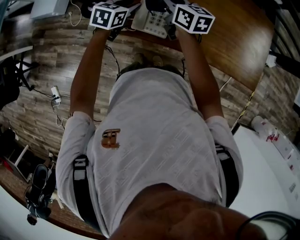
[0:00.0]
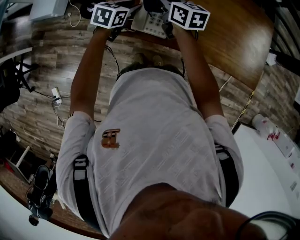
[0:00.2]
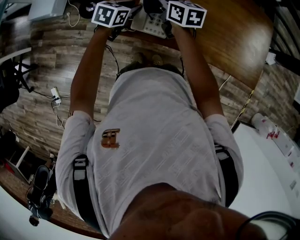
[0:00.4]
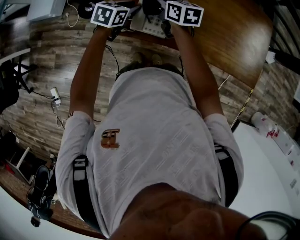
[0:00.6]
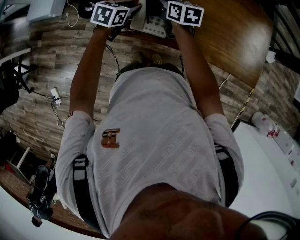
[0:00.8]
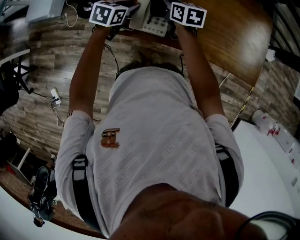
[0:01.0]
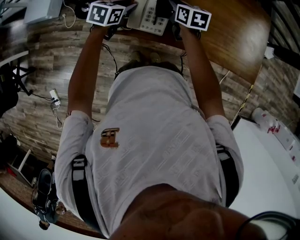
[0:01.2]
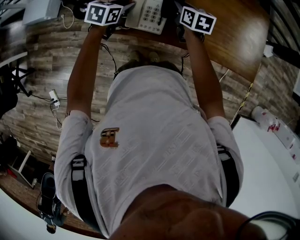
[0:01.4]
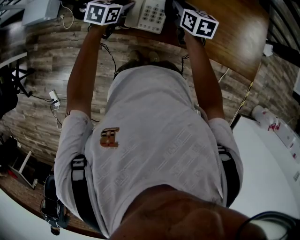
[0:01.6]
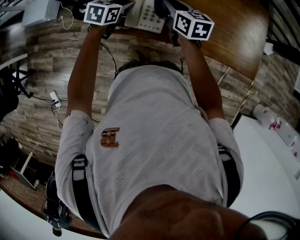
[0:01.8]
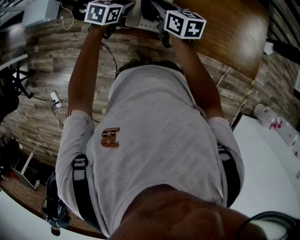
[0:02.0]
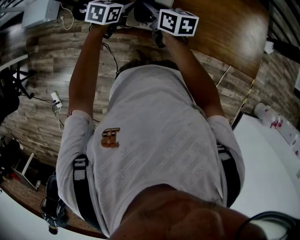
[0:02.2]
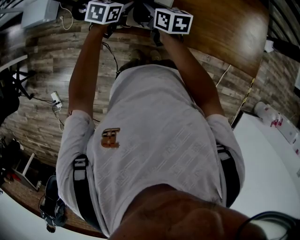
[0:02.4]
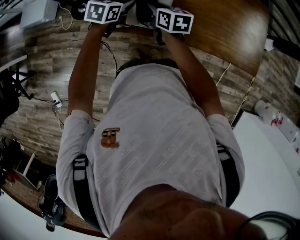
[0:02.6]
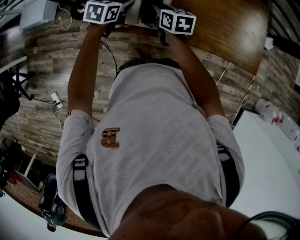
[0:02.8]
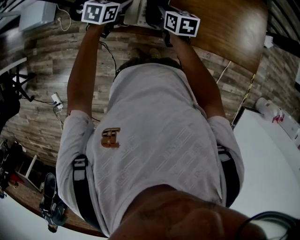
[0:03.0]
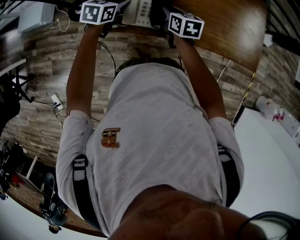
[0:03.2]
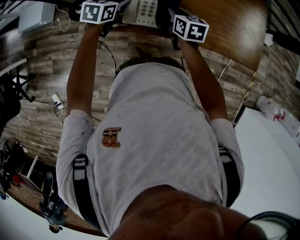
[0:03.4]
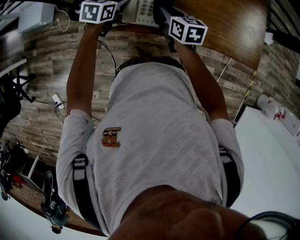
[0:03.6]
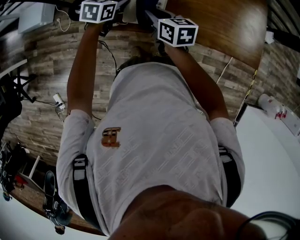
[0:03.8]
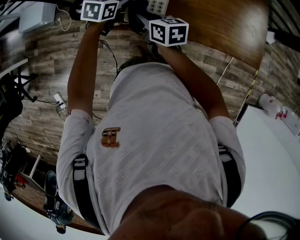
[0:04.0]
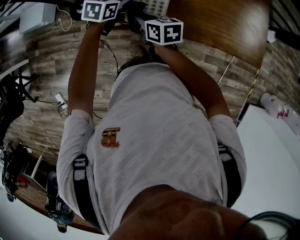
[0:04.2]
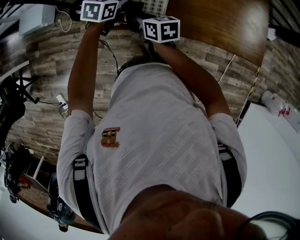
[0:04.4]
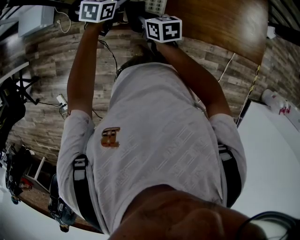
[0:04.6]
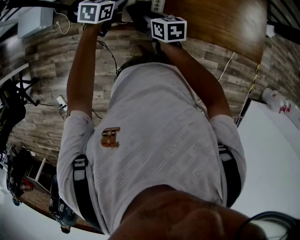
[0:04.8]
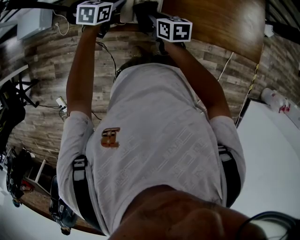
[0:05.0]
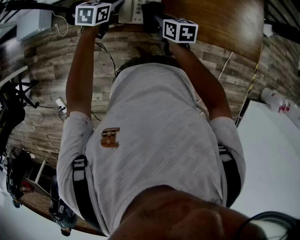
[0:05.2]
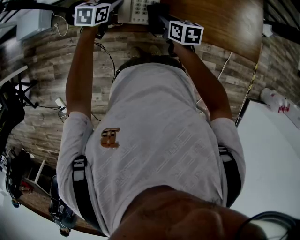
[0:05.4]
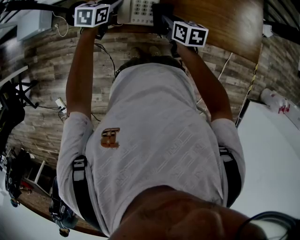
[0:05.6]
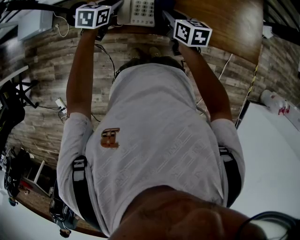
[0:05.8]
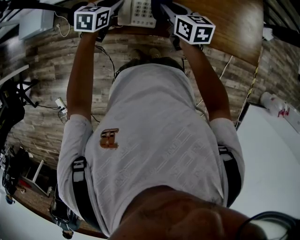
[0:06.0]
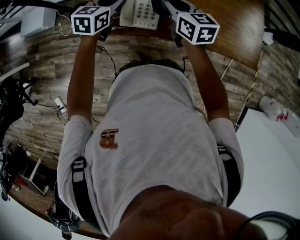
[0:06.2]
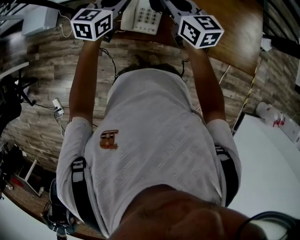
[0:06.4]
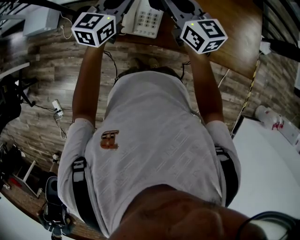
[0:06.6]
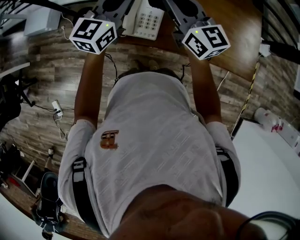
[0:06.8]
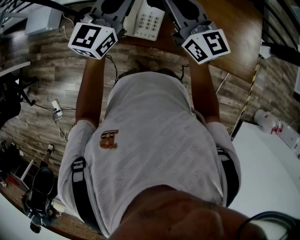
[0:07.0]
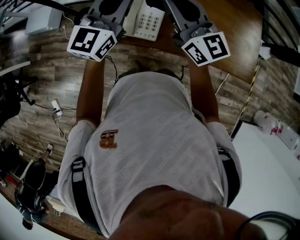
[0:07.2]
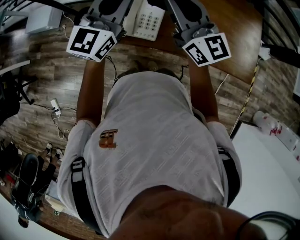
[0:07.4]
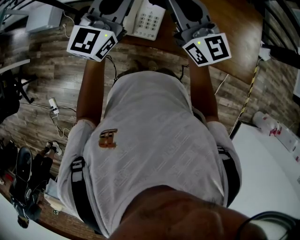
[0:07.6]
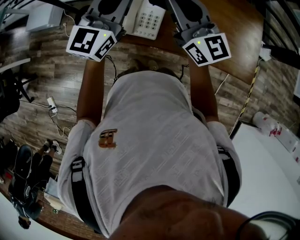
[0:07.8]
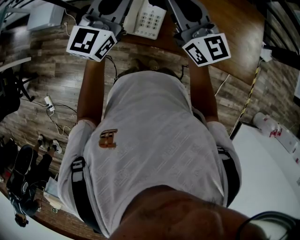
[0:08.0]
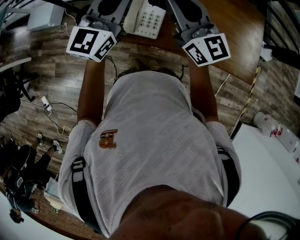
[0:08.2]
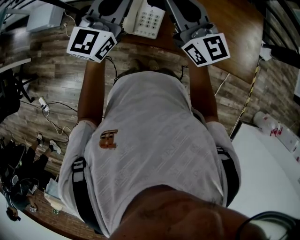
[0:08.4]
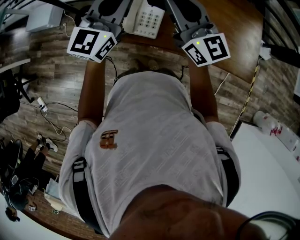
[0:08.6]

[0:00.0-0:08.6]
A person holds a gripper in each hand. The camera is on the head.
0:00.0 to 0:01.4: The right gripper is displaced to the right and downward by about 15 cm, and changes its angle by roughly 20 degrees.
0:01.4 to 0:02.8: The right gripper shifts roughly 10 cm to the left and backward.
0:02.8 to 0:04.4: The right gripper travels backward and to the left by approximately 10 cm.
0:04.4 to 0:05.8: The right gripper goes approximately 15 cm to the right.
0:05.8 to 0:07.2: The two grippers go roughly 25 cm upward. The right gripper tips its fingers upward by approximately 40 degrees; the left gripper tips its fingers upward by some 50 degrees, and closes up.
0:07.2 to 0:08.6: The two grippers keep their place.

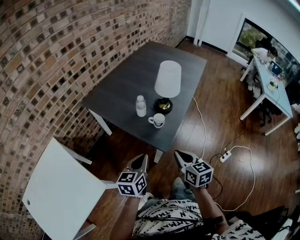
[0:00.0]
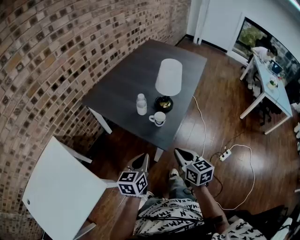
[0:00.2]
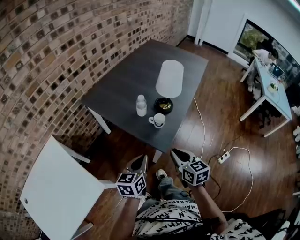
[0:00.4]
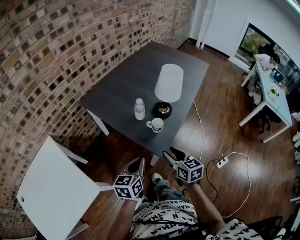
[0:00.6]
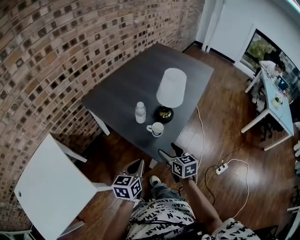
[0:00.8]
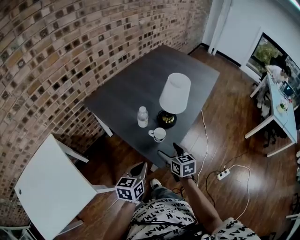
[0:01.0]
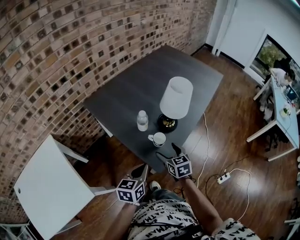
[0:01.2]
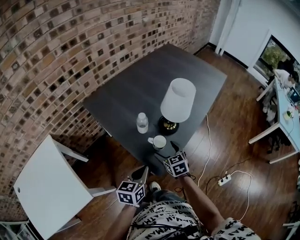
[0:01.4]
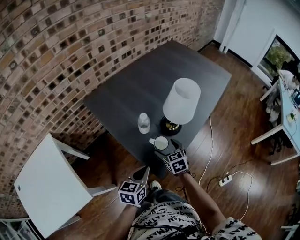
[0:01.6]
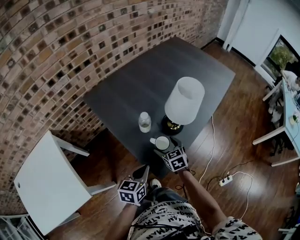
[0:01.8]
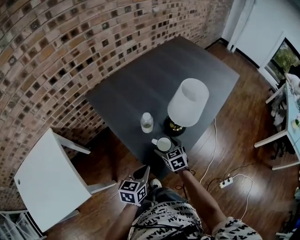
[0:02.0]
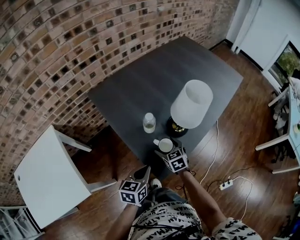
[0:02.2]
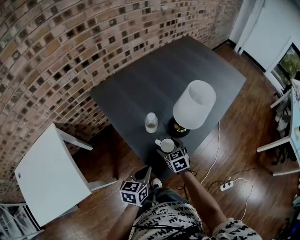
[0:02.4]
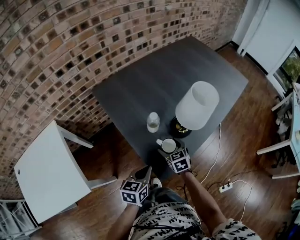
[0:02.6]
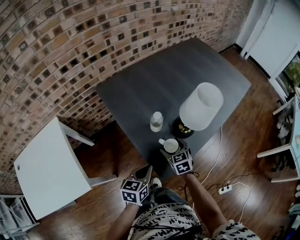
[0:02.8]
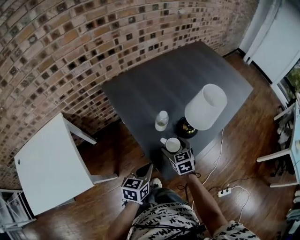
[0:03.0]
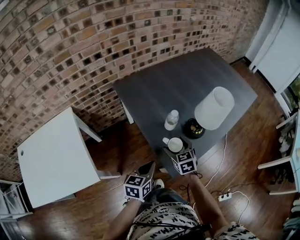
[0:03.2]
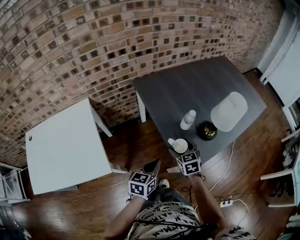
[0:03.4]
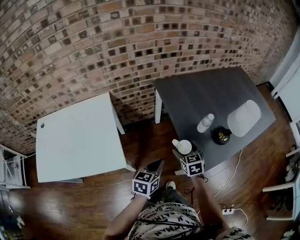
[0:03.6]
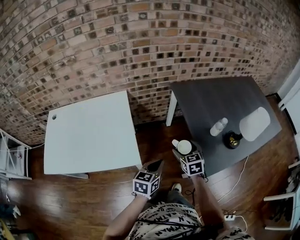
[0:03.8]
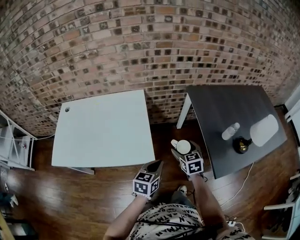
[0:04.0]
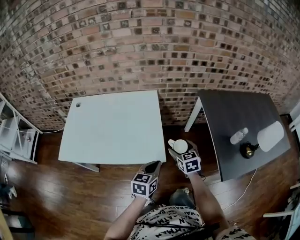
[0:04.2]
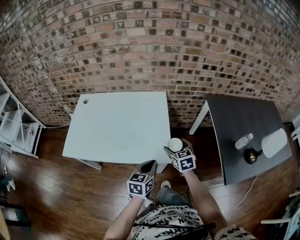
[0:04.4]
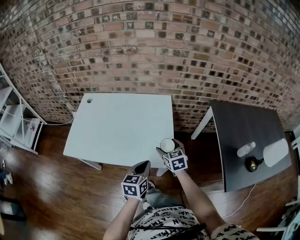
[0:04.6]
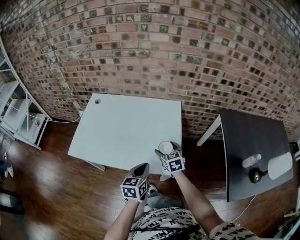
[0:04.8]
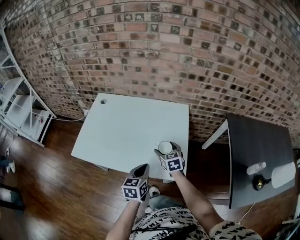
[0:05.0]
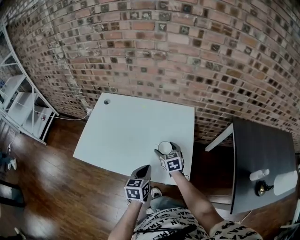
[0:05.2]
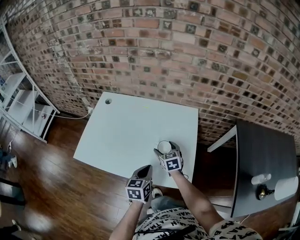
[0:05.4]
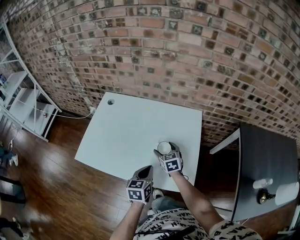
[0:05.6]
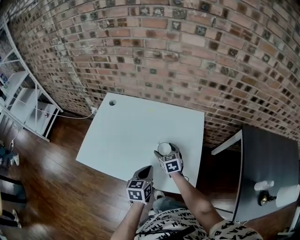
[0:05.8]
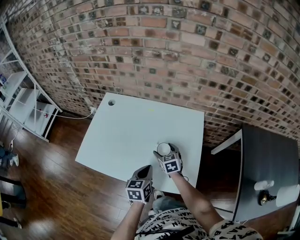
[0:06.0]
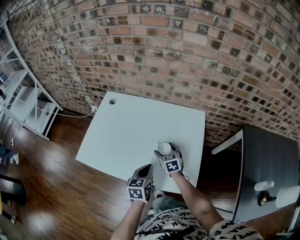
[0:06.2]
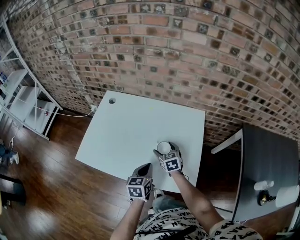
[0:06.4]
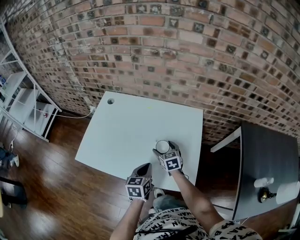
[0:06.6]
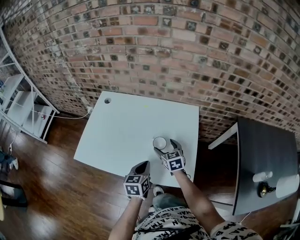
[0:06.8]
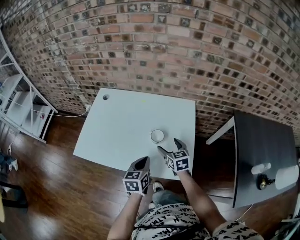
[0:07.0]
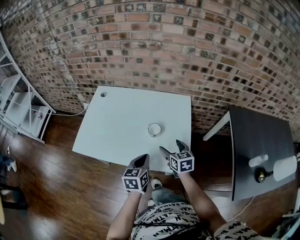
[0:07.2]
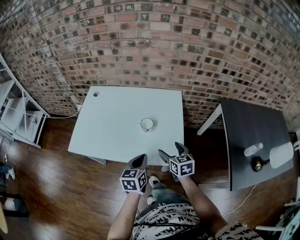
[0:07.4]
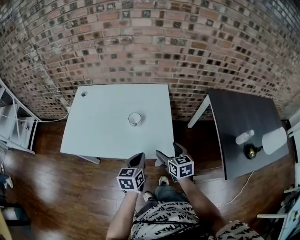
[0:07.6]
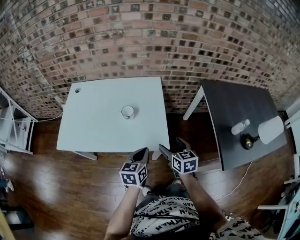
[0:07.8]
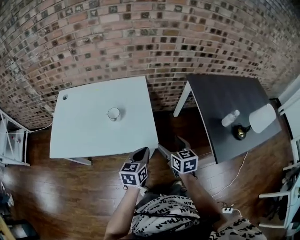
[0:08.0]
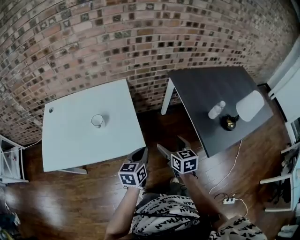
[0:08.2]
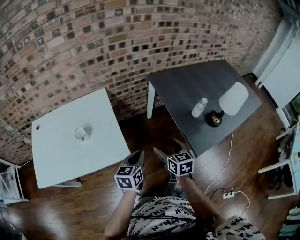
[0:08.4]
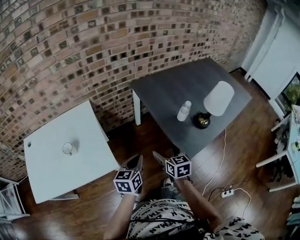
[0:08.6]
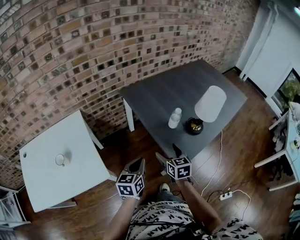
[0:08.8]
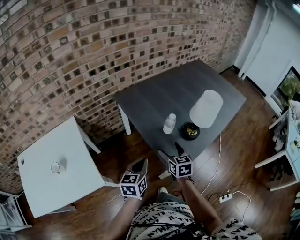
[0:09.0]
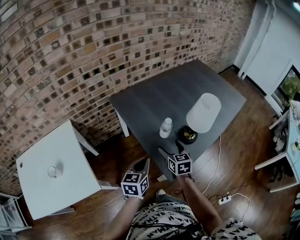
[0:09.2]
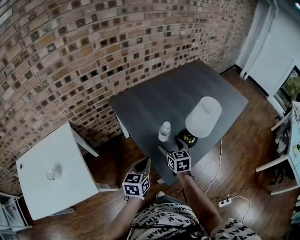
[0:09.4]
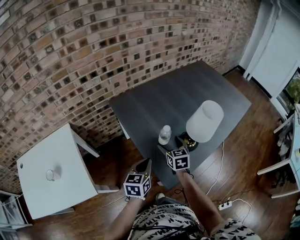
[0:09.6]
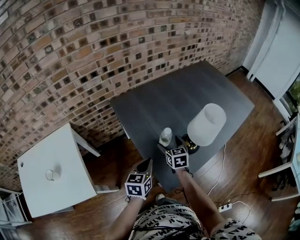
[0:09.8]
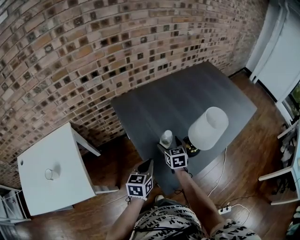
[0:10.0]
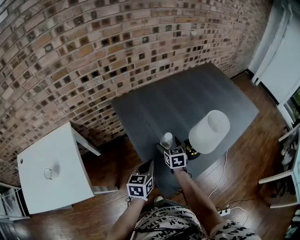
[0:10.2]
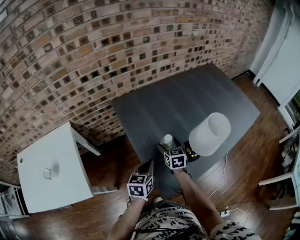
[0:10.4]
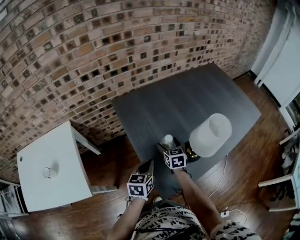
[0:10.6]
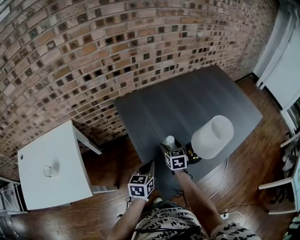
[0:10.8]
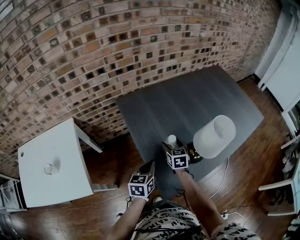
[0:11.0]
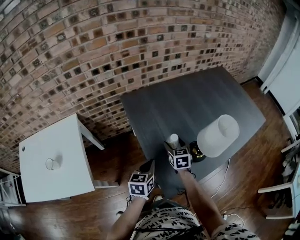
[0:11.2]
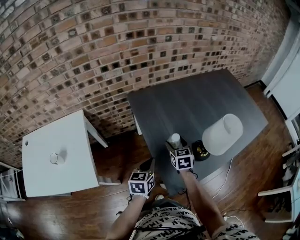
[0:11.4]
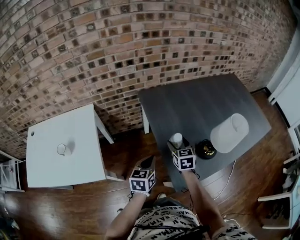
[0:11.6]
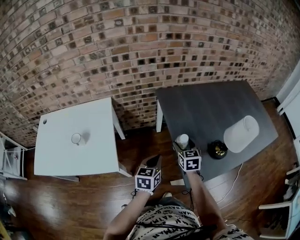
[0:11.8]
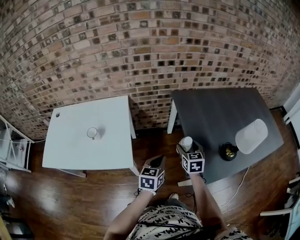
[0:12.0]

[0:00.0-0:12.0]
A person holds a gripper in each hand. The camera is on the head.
0:00.0 to 0:01.6: The right gripper is displaced forward and downward by roughly 30 cm, turns by about 30 degrees, and opens up, while the left gripper heads forward and downward, covering roughly 15 cm.
0:01.6 to 0:03.0: The grippers move only a little.
0:03.0 to 0:04.4: The two grippers travel together, some 50 cm. The right gripper changes its angle by roughly 30 degrees, while the left gripper swivels roughly 40 degrees.
0:04.4 to 0:06.0: The right gripper goes approximately 30 cm to the left, forward and downward; the left gripper is displaced to the left and forward by some 25 cm, and swivels roughly 20 degrees.
0:06.0 to 0:07.6: The left gripper travels backward and to the right by roughly 15 cm. The right gripper travels backward, to the right and upward by about 30 cm.
0:07.6 to 0:09.0: The two grippers travel together, about 50 cm. The right gripper rotates approximately 40 degrees; the left gripper swivels about 40 degrees.
0:09.0 to 0:10.4: The left gripper goes about 15 cm forward and to the right. The right gripper travels forward by about 20 cm.
0:10.4 to 0:12.0: The grippers both shift to the left and backward by about 25 cm.

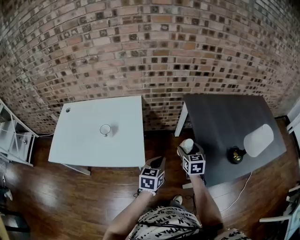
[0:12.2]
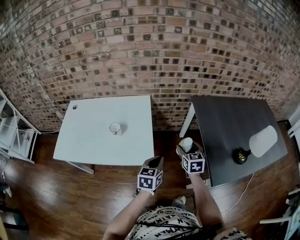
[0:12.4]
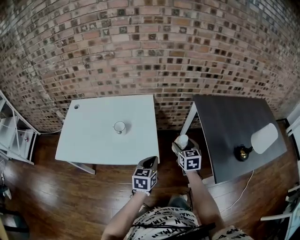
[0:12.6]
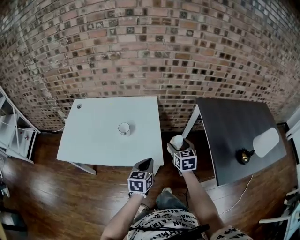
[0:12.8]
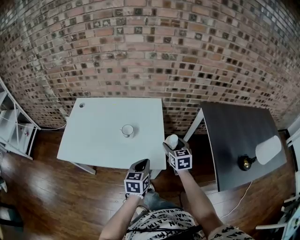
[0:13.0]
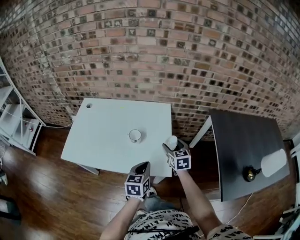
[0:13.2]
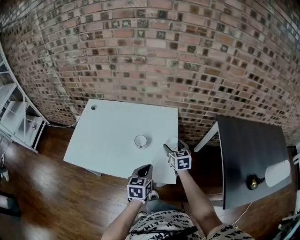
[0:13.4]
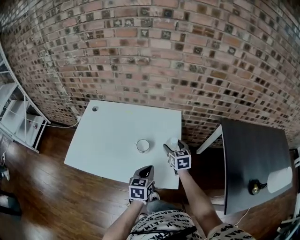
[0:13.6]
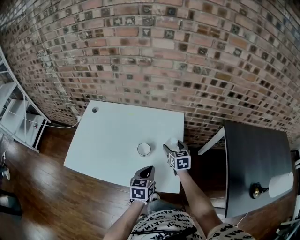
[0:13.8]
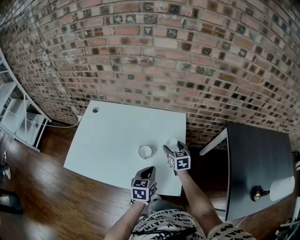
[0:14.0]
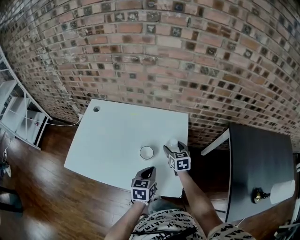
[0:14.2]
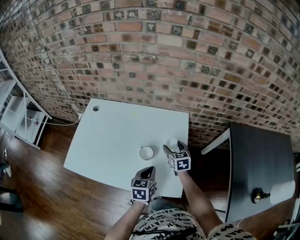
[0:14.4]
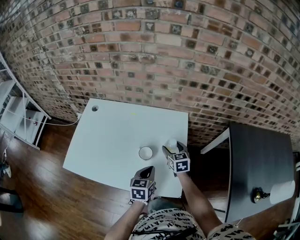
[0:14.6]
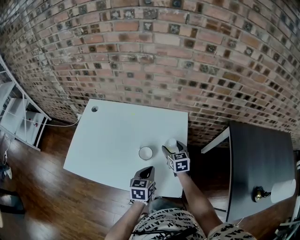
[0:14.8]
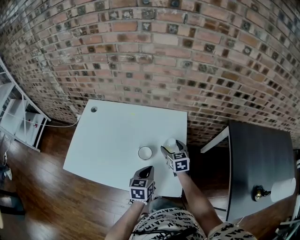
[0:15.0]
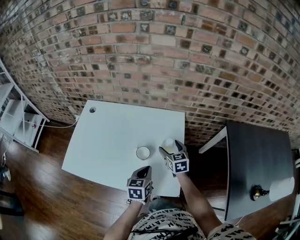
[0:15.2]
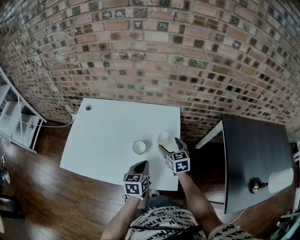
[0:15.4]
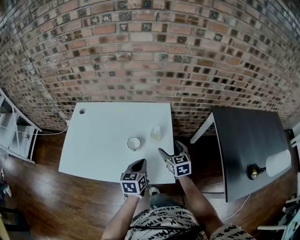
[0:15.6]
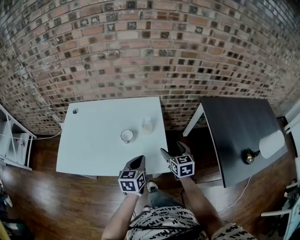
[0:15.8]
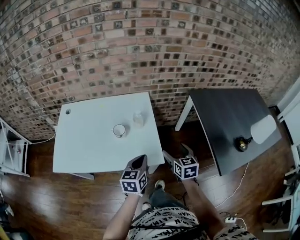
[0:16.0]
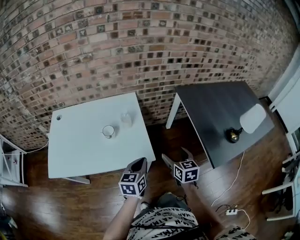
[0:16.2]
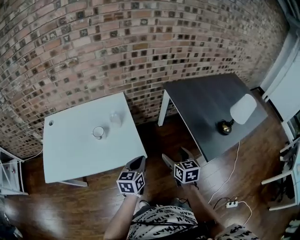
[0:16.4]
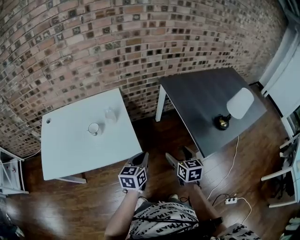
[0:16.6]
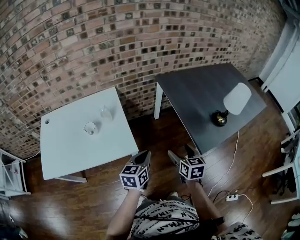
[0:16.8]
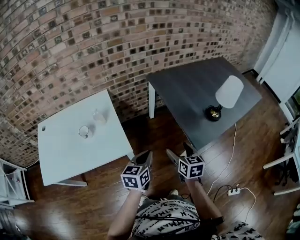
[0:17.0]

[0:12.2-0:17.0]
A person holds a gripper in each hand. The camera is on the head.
0:12.2 to 0:13.8: The left gripper moves to the left, roughly 30 cm. Meanwhile the right gripper shifts about 40 cm to the left and forward, and rotates approximately 20 degrees.
0:13.8 to 0:15.4: The grippers make only small movements.
0:15.4 to 0:17.0: The right gripper shifts by some 50 cm, and turns by approximately 40 degrees. Meanwhile the left gripper shifts by approximately 35 cm, and rotates about 40 degrees.
